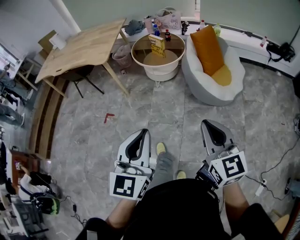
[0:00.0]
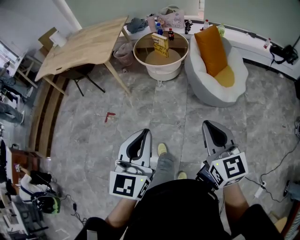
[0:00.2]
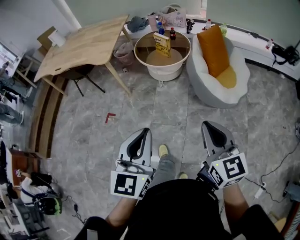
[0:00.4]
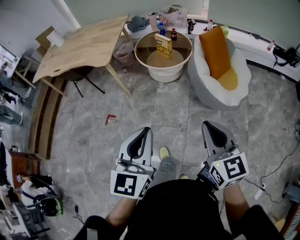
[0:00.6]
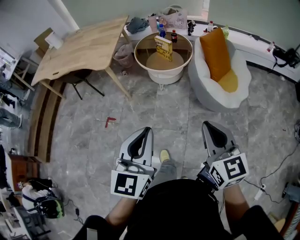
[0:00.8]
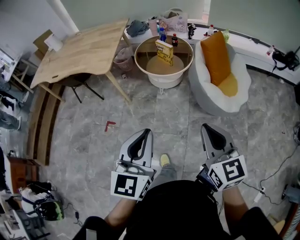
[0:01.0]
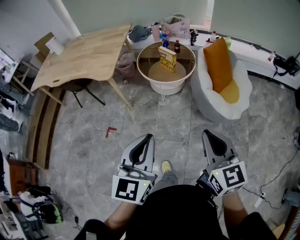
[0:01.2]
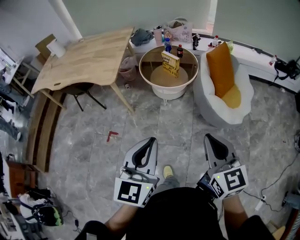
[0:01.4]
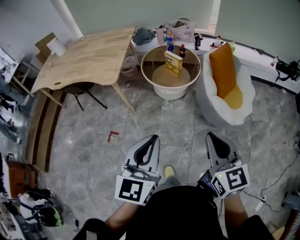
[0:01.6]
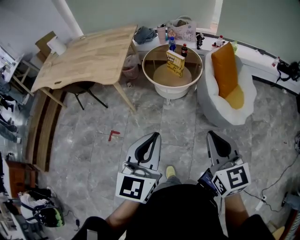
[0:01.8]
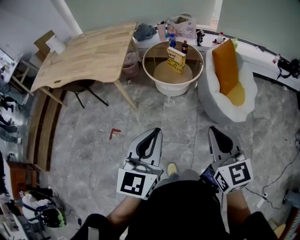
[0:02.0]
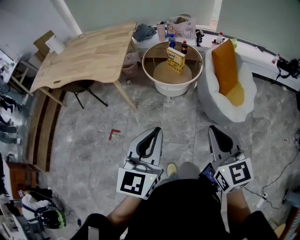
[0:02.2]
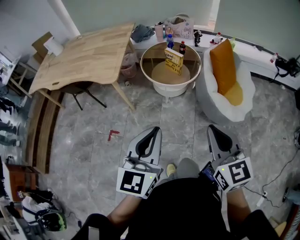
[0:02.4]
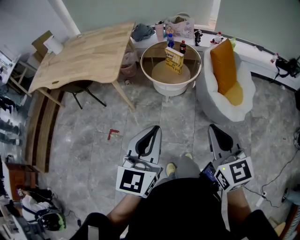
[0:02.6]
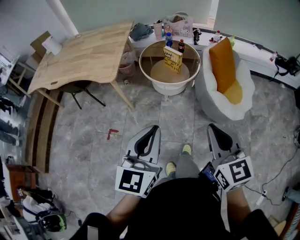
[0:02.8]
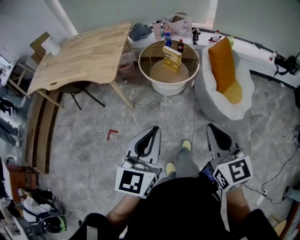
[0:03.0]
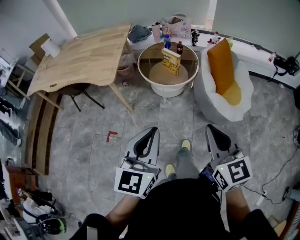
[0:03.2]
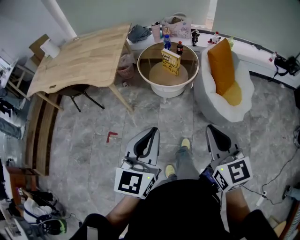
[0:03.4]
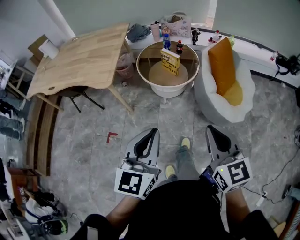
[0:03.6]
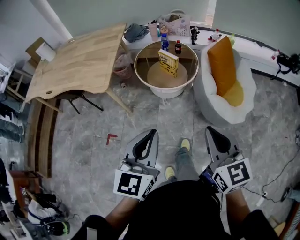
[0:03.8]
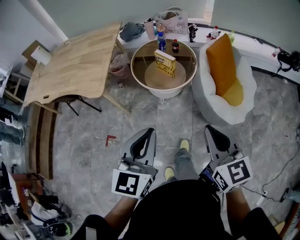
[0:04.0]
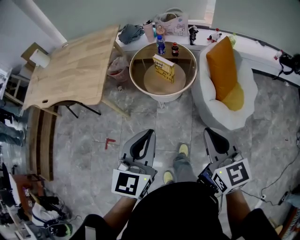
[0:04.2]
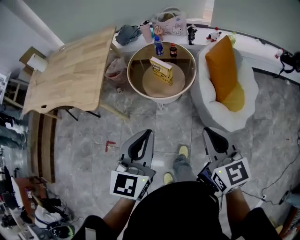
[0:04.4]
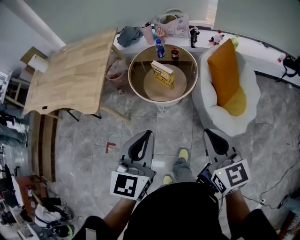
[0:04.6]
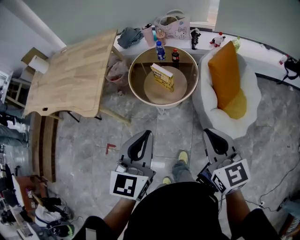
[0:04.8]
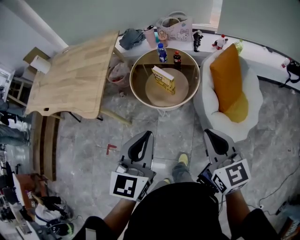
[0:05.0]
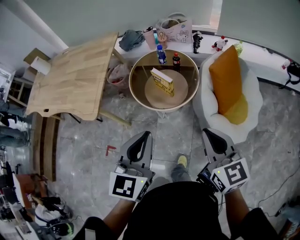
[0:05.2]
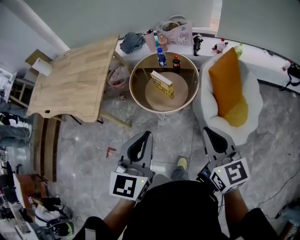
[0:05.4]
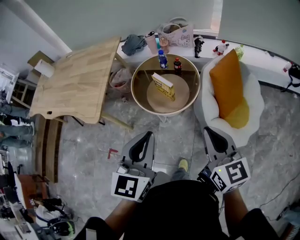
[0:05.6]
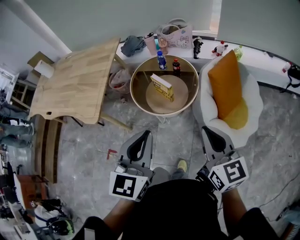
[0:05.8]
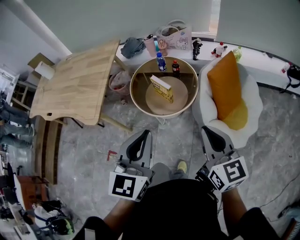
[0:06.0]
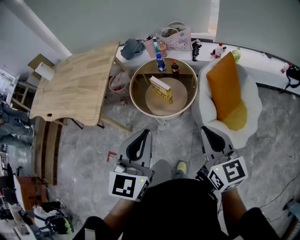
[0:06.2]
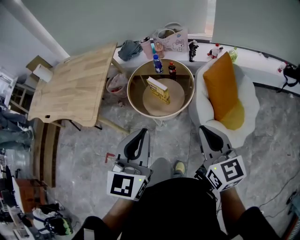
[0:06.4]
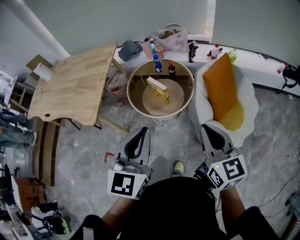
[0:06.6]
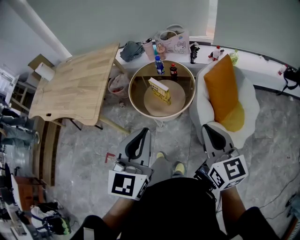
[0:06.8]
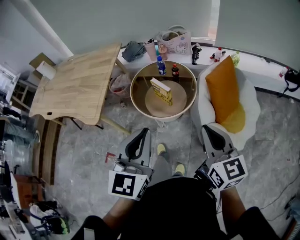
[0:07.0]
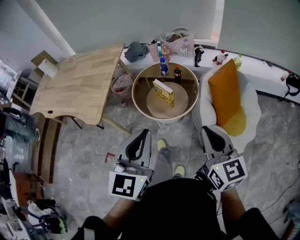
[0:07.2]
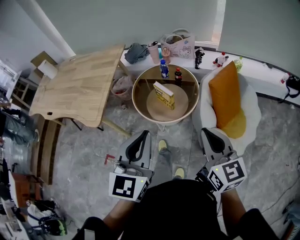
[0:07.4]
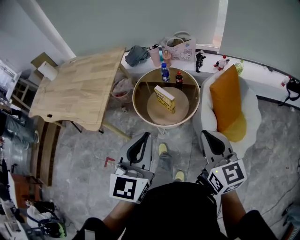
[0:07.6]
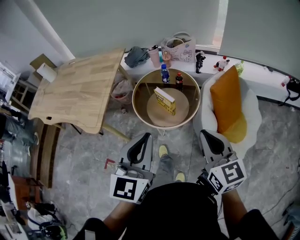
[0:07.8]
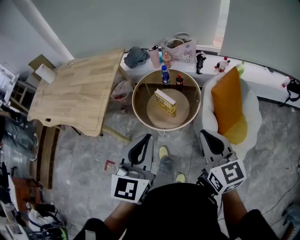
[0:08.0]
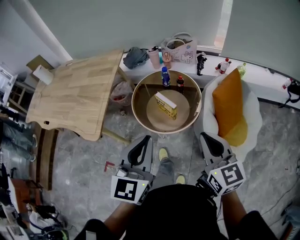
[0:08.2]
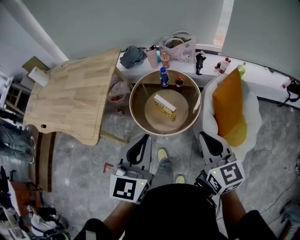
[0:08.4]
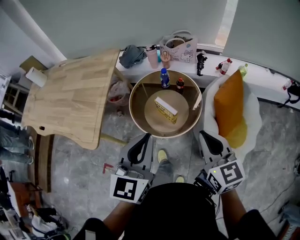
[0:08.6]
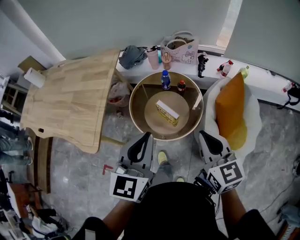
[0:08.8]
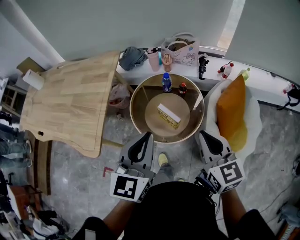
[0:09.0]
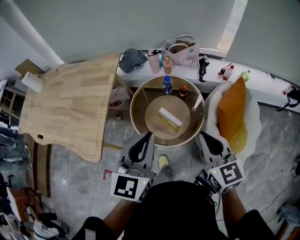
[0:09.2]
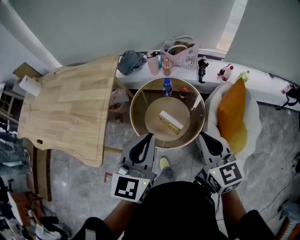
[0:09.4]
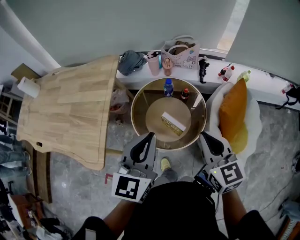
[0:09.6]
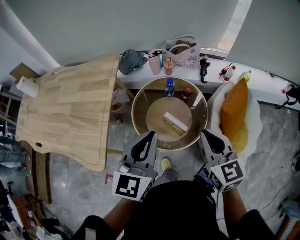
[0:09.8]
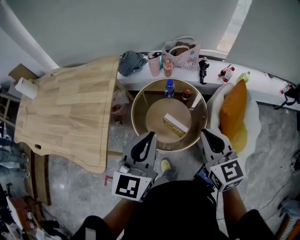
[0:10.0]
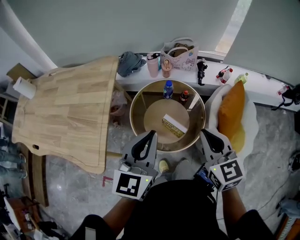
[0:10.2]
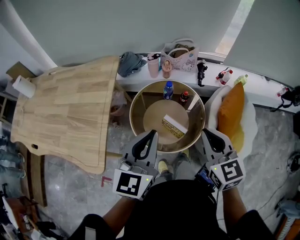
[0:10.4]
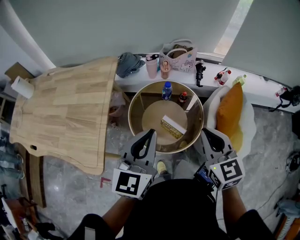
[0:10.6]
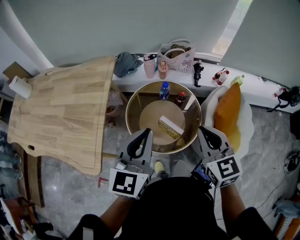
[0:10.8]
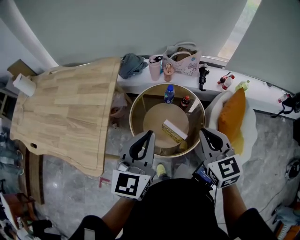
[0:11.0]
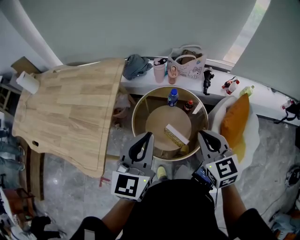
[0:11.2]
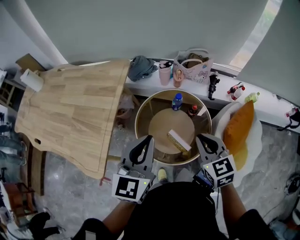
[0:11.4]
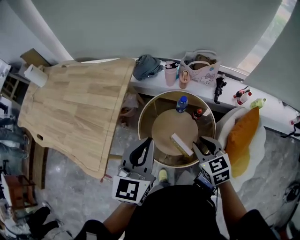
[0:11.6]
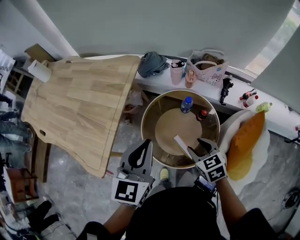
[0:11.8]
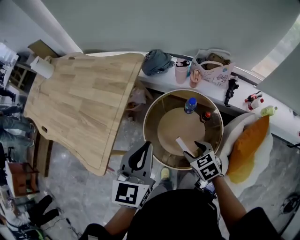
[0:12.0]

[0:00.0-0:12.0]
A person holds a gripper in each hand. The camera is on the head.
0:00.0 to 0:01.6: The two grippers go roughly 25 cm forward and to the left.
0:01.6 to 0:03.0: The grippers stay close to where they were, moving slightly.
0:03.0 to 0:04.4: The right gripper is displaced forward and to the right by roughly 20 cm. The left gripper travels forward by about 20 cm.
0:04.4 to 0:06.0: Both grippers move forward and to the right, roughly 10 cm.
0:06.0 to 0:07.6: The grippers make only small movements.
0:07.6 to 0:09.0: The two grippers go approximately 20 cm forward.
0:09.0 to 0:10.4: The two grippers go about 10 cm forward and to the left.
0:10.4 to 0:12.0: The right gripper shifts about 20 cm downward, tips its fingers downward by approximately 30 degrees, and opens up, while the left gripper shifts by some 10 cm, and rotates roughly 20 degrees.

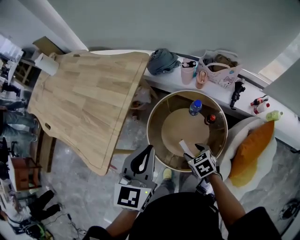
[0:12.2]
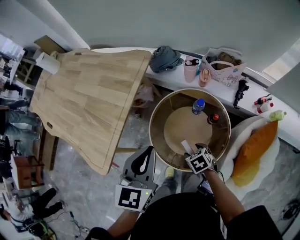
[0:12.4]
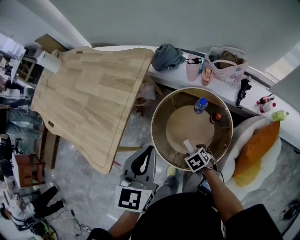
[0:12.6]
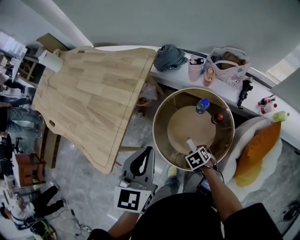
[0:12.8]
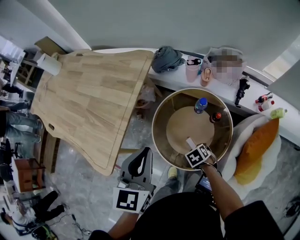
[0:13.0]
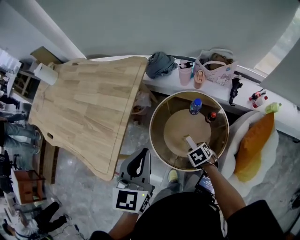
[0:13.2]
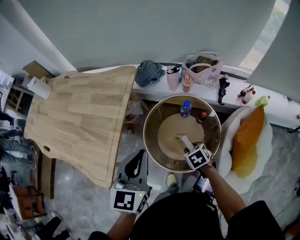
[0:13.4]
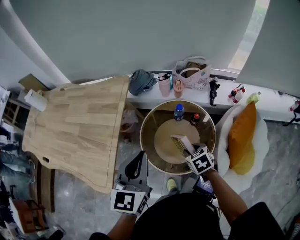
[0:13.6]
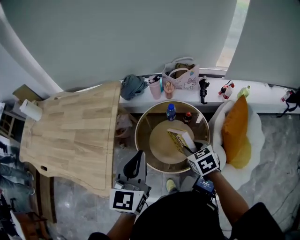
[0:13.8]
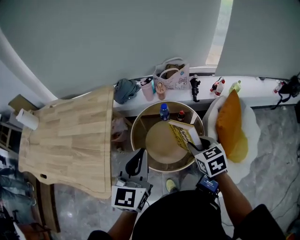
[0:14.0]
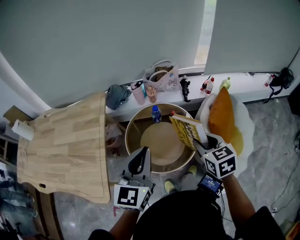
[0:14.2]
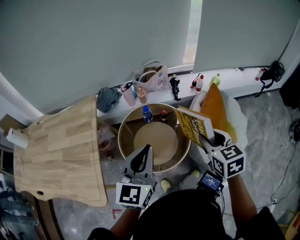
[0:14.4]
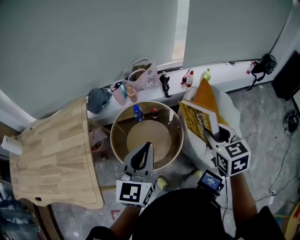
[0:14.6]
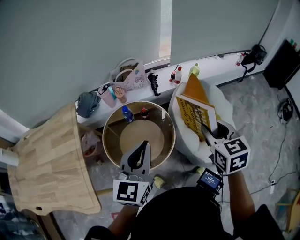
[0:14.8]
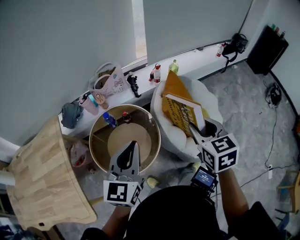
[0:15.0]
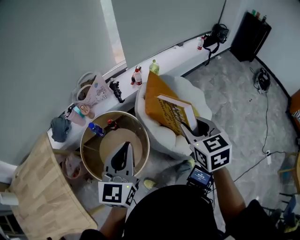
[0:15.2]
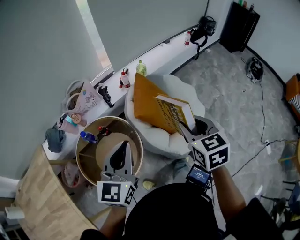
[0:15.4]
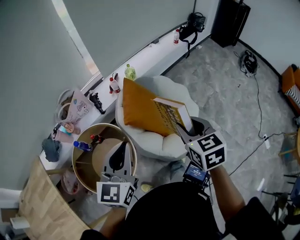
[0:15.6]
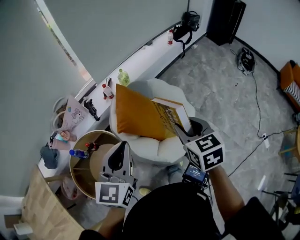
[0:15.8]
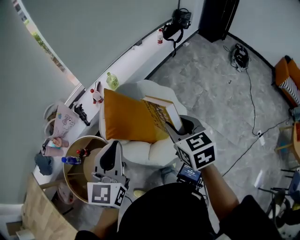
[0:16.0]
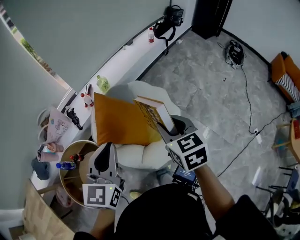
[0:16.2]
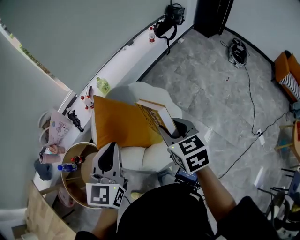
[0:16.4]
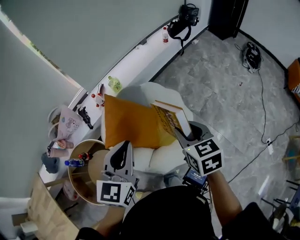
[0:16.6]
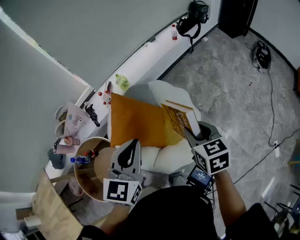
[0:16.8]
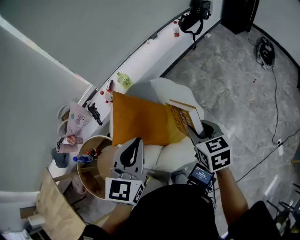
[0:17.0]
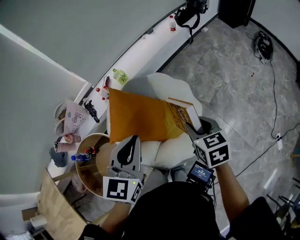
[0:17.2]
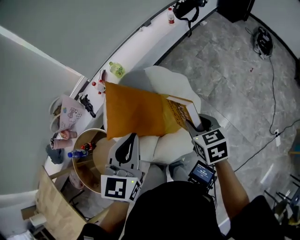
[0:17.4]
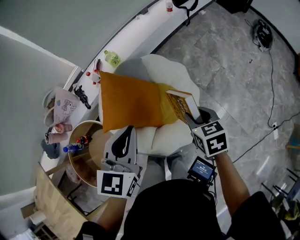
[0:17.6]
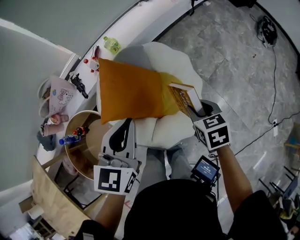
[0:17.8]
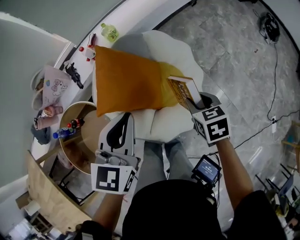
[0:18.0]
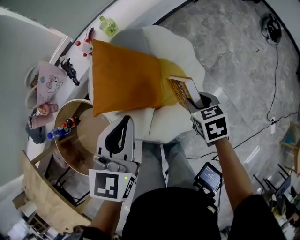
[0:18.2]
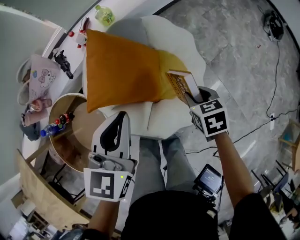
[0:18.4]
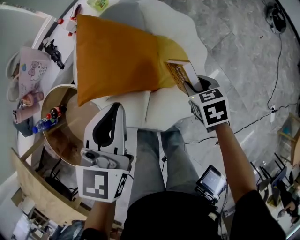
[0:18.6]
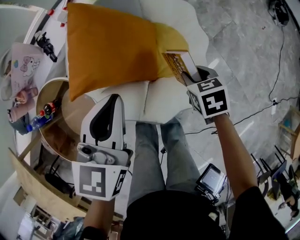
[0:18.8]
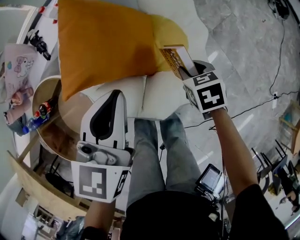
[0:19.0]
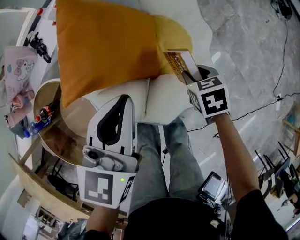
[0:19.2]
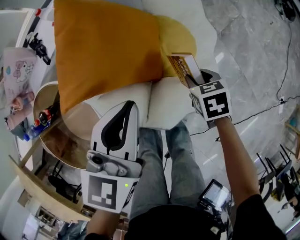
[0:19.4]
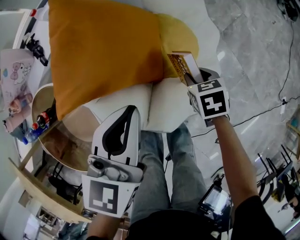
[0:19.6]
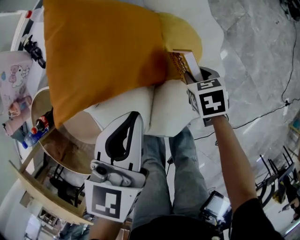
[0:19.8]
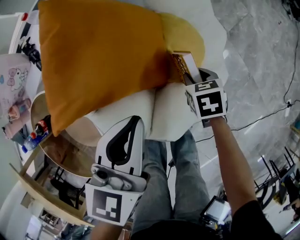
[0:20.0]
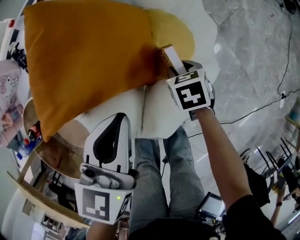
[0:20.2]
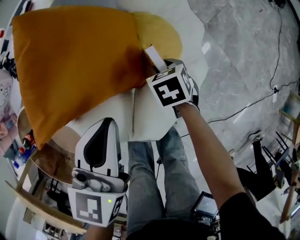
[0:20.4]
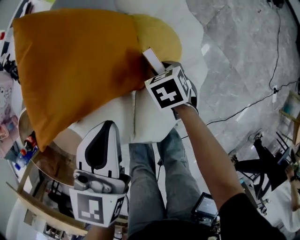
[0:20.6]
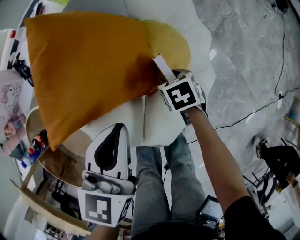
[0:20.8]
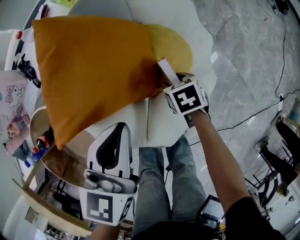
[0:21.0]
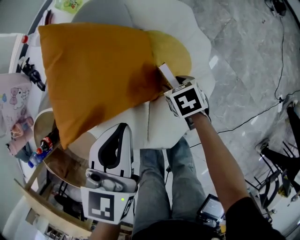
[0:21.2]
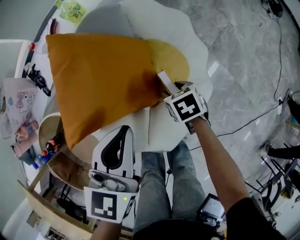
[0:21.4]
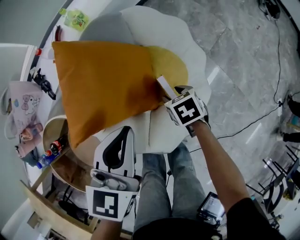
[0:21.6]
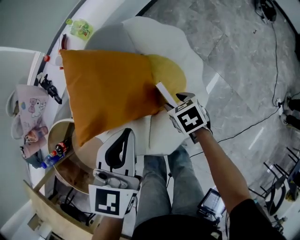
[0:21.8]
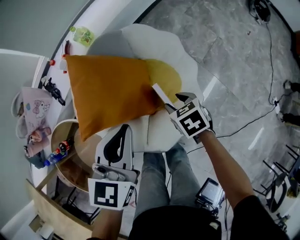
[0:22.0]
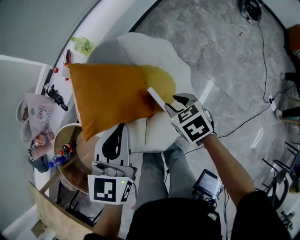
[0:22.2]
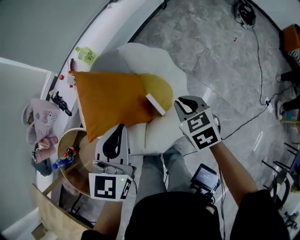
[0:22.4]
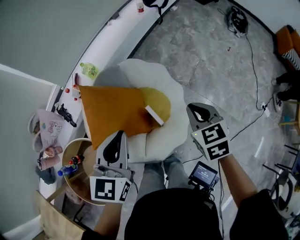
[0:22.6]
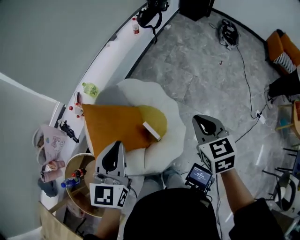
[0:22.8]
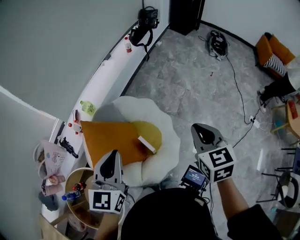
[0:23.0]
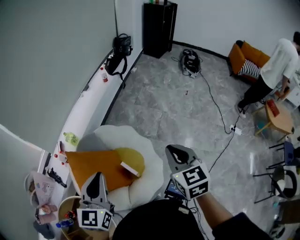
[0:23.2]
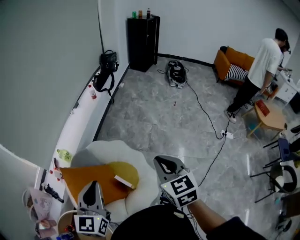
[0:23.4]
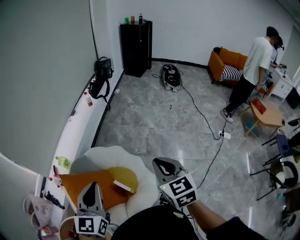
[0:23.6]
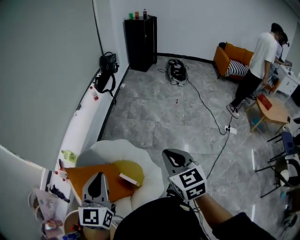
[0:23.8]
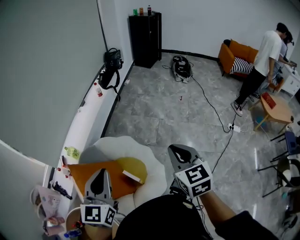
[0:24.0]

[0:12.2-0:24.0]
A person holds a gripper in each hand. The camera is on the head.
0:12.2 to 0:13.6: The left gripper shifts by roughly 5 cm, while the right gripper goes roughly 5 cm upward, and closes up.
0:13.6 to 0:15.2: The right gripper ends up some 40 cm from where it was, and rotates approximately 60 degrees; the left gripper ends up about 30 cm from where it was, and turns by about 40 degrees.
0:15.2 to 0:16.6: Both grippers move to the right and forward, some 35 cm.
0:16.6 to 0:18.2: The left gripper moves downward, approximately 15 cm, while the right gripper shifts some 25 cm downward, and swivels some 20 degrees.
0:18.2 to 0:19.6: The two grippers go approximately 20 cm downward.
0:19.6 to 0:21.0: The right gripper travels downward by approximately 5 cm.
0:21.0 to 0:22.6: The right gripper is displaced upward by about 40 cm, changes its angle by some 30 degrees, and closes up. Meanwhile the left gripper goes approximately 25 cm upward.
0:22.6 to 0:24.0: The grippers both shift upward and to the right by about 20 cm. The right gripper changes its angle by roughly 30 degrees.
